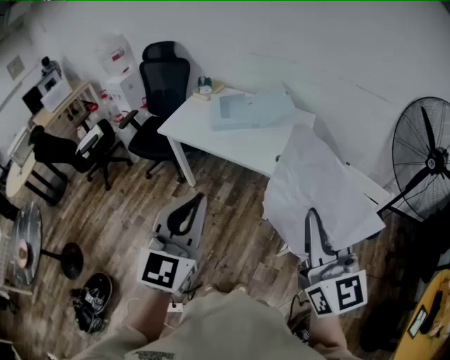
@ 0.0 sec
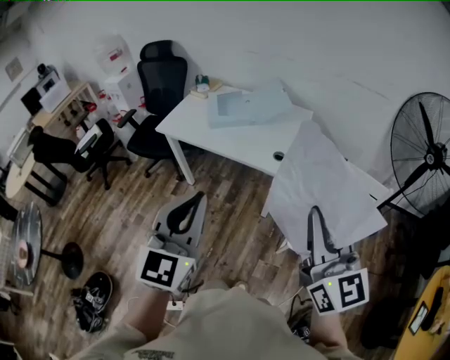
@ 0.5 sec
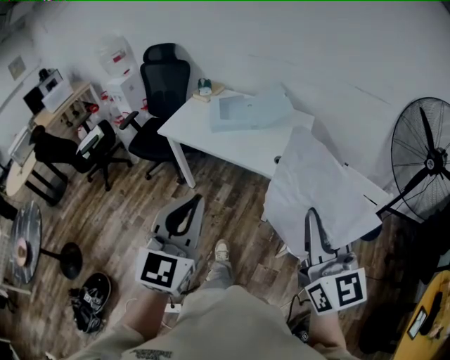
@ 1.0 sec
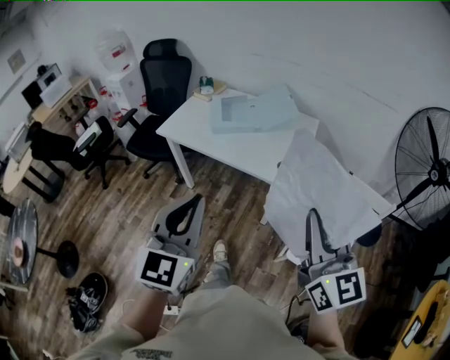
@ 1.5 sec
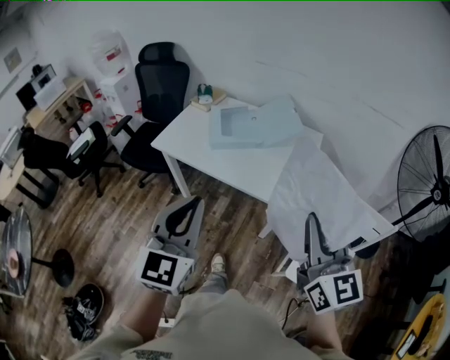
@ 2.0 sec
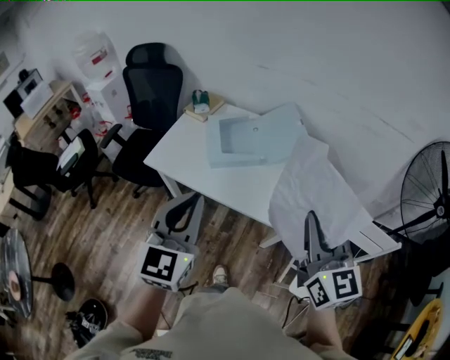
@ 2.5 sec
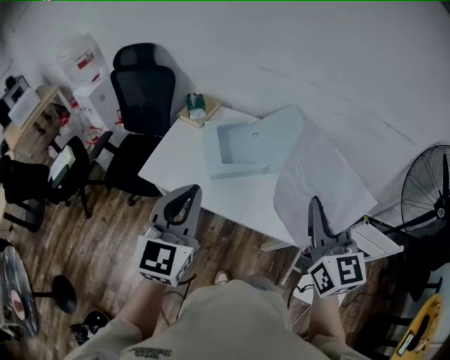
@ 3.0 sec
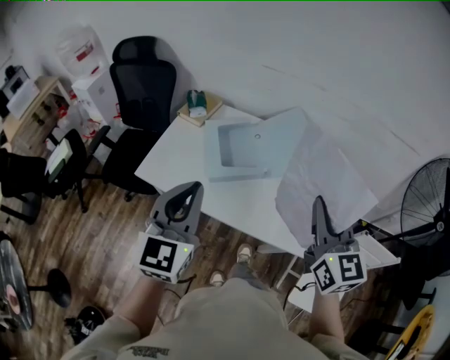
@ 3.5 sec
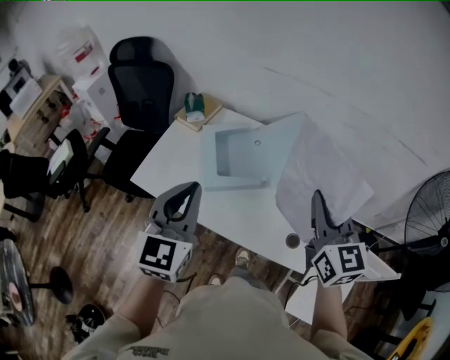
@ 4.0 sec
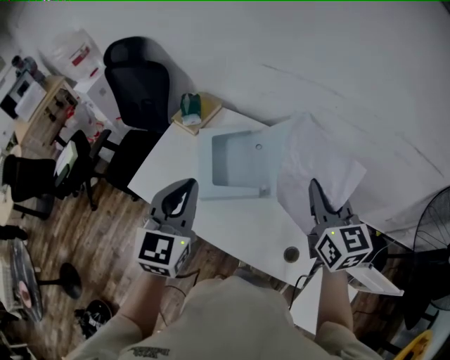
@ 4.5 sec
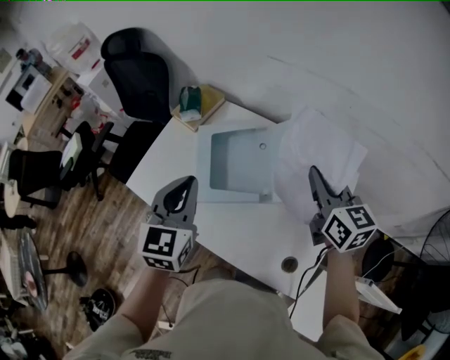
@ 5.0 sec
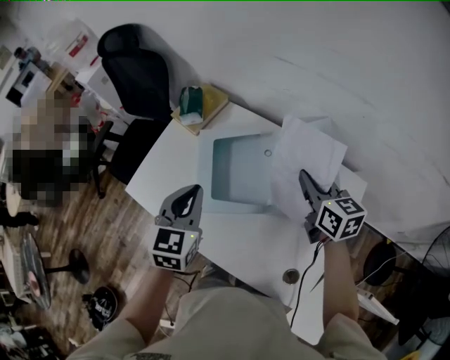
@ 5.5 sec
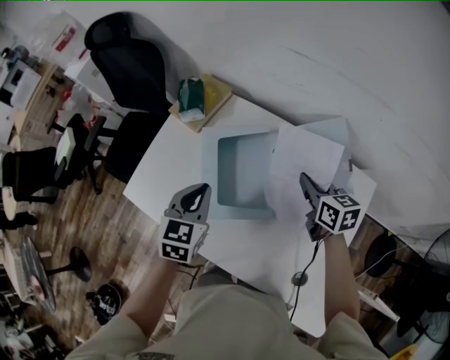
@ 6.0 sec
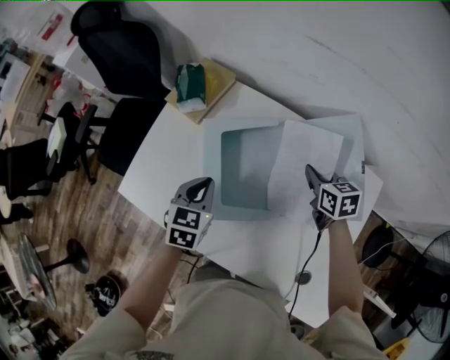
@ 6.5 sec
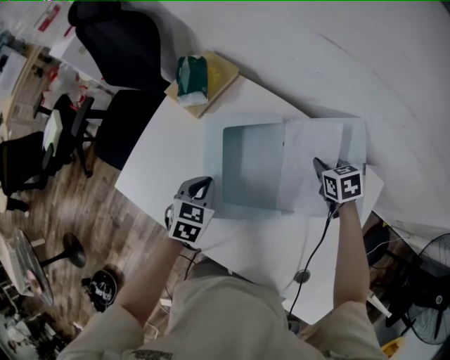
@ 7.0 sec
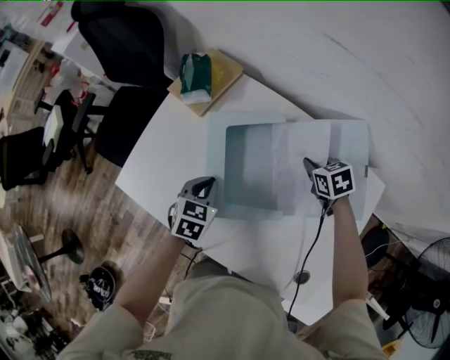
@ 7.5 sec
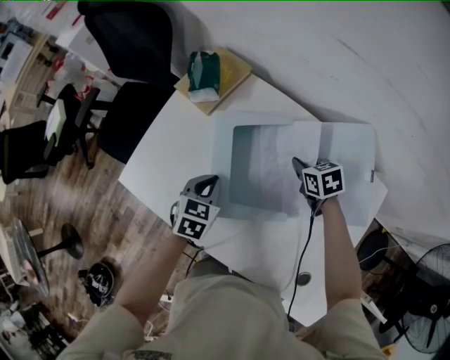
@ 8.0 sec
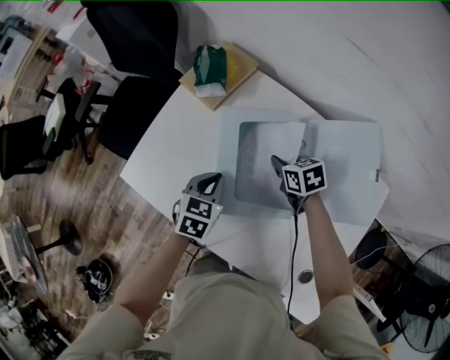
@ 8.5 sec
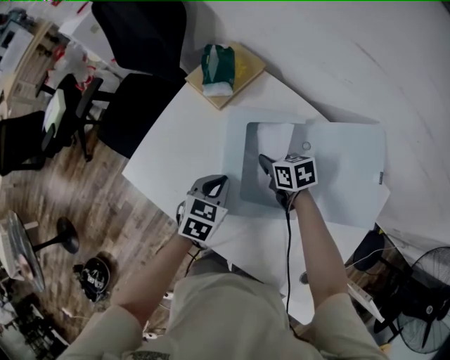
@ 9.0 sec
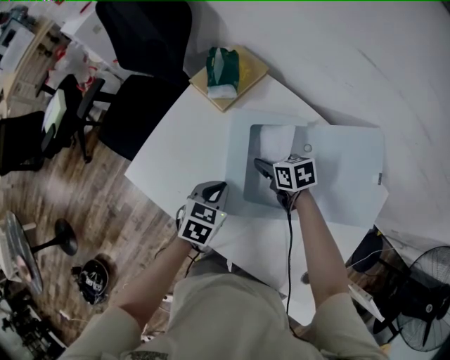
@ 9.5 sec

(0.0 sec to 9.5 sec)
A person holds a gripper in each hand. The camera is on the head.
0.0 sec - 2.0 sec: The two grippers go roughly 15 cm forward.
2.0 sec - 4.0 sec: The two grippers go approximately 40 cm forward.
4.0 sec - 5.5 sec: The two grippers go approximately 30 cm forward and downward. The left gripper rotates some 20 degrees. Meanwhile the right gripper rotates roughly 30 degrees.
5.5 sec - 7.5 sec: The right gripper shifts some 25 cm downward and forward, and tilts its fingers approximately 40 degrees downward, while the left gripper travels downward by some 20 cm, and rotates approximately 30 degrees.
7.5 sec - 9.5 sec: The right gripper goes roughly 20 cm to the left, and opens up.

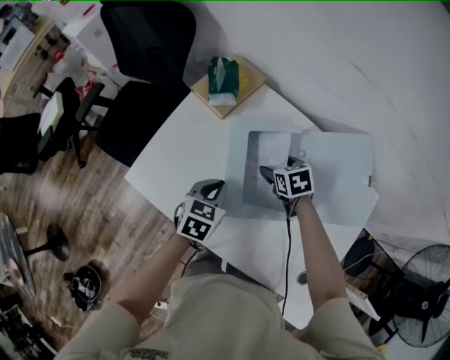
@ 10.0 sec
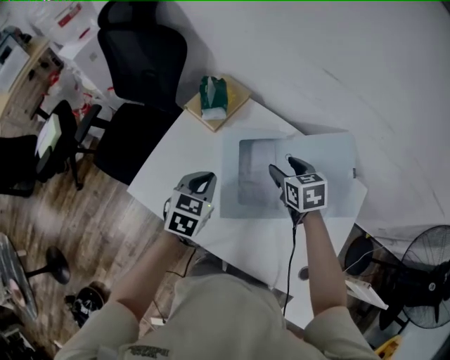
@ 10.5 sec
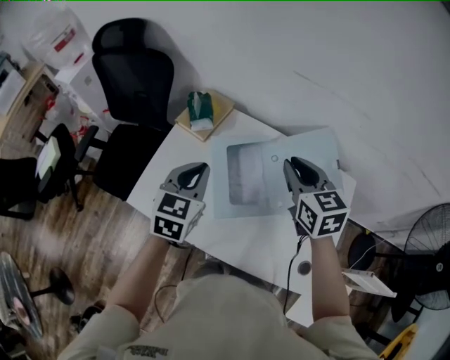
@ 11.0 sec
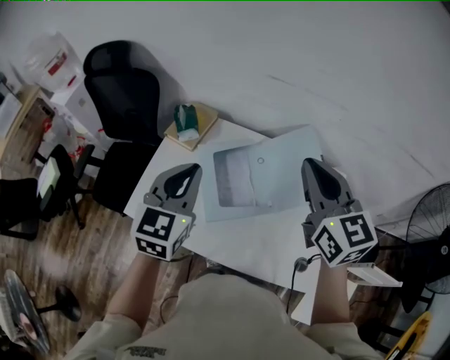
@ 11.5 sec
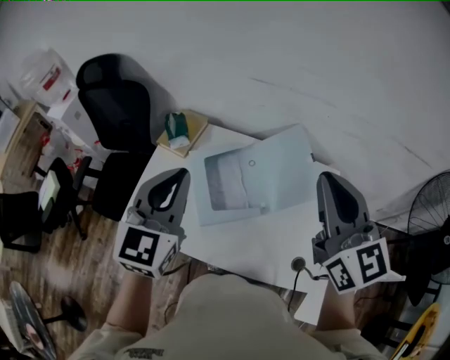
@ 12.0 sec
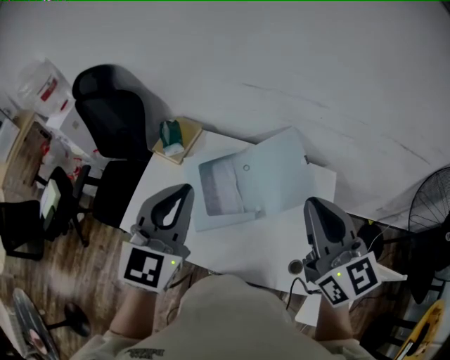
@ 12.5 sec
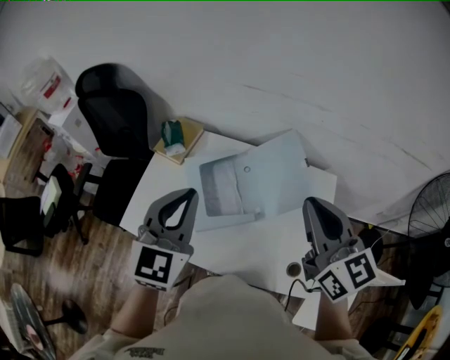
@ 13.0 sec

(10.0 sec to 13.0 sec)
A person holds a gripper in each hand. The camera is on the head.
10.0 sec - 11.5 sec: Both grippers travel together upward, roughly 35 cm. The left gripper rotates roughly 30 degrees. The right gripper tips its fingers upward by some 50 degrees, and closes its fingers.
11.5 sec - 13.0 sec: The left gripper shifts roughly 5 cm to the right; the right gripper moves to the right and backward, roughly 10 cm.

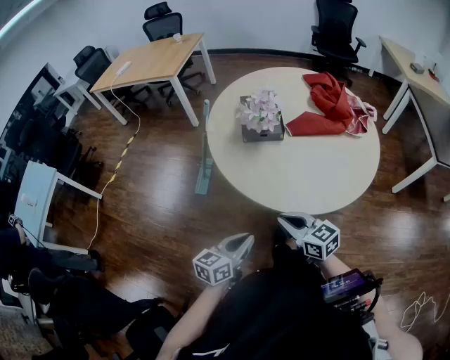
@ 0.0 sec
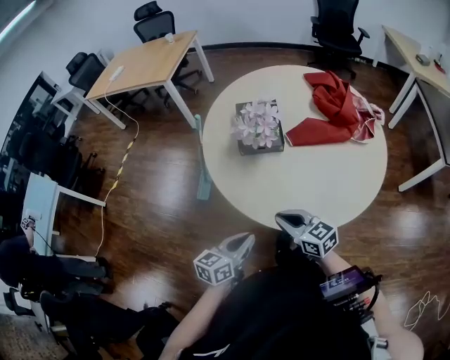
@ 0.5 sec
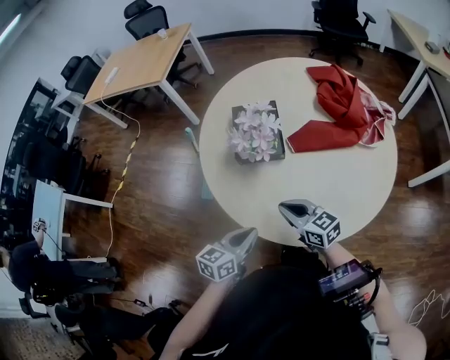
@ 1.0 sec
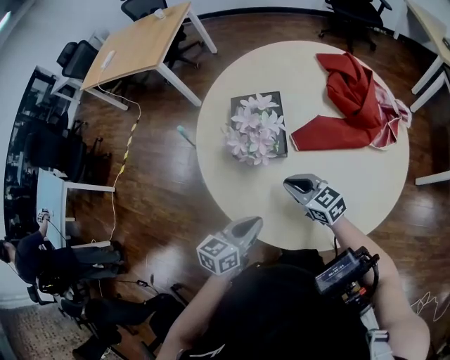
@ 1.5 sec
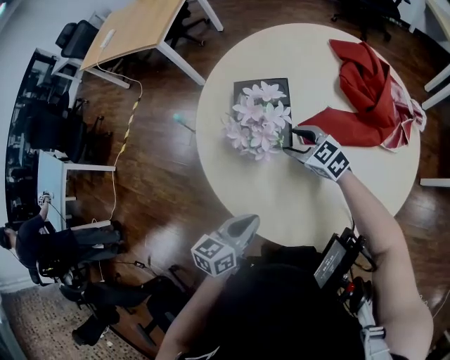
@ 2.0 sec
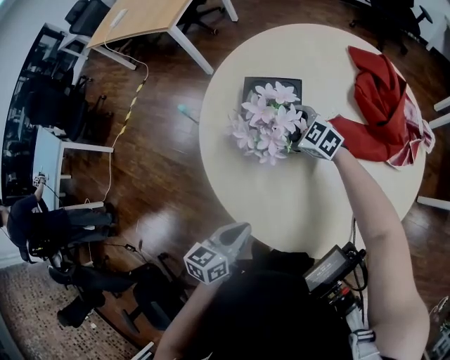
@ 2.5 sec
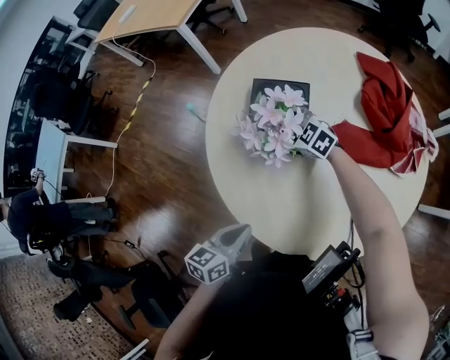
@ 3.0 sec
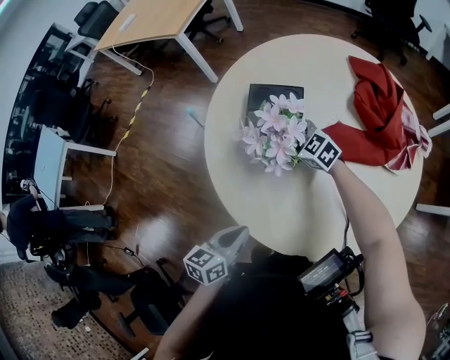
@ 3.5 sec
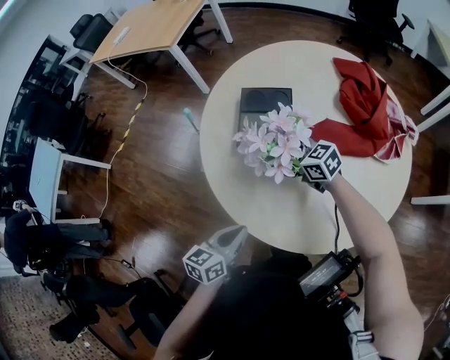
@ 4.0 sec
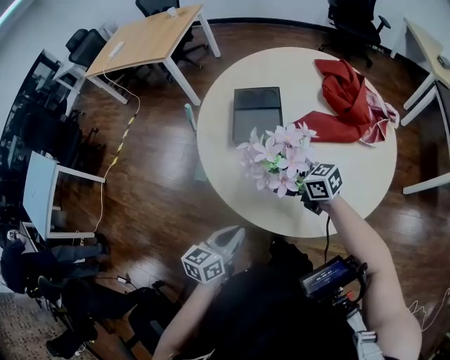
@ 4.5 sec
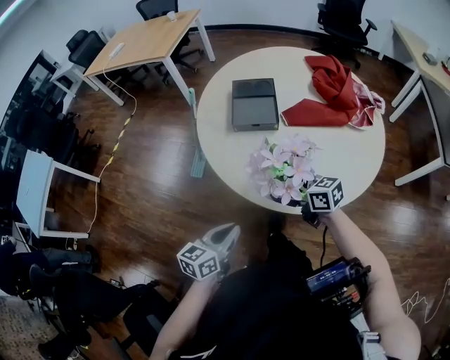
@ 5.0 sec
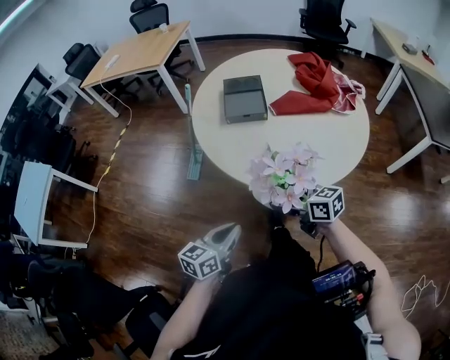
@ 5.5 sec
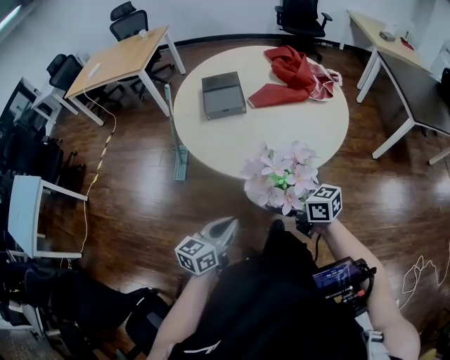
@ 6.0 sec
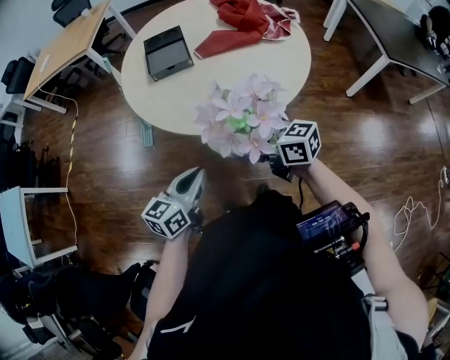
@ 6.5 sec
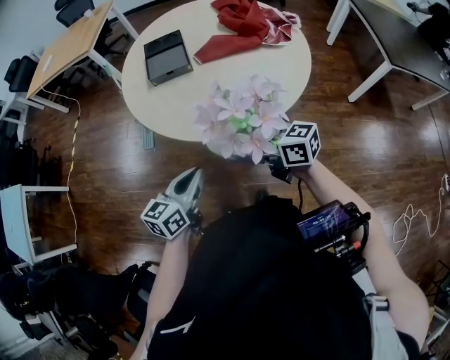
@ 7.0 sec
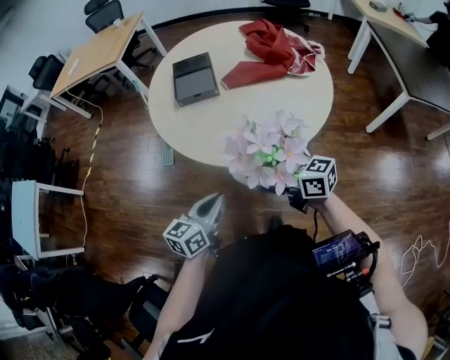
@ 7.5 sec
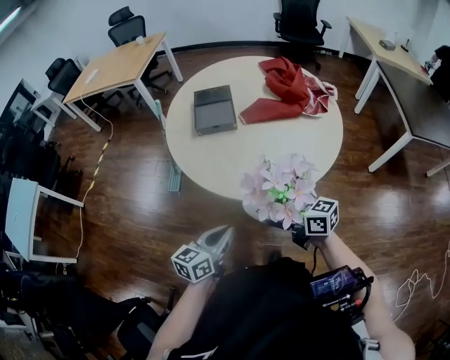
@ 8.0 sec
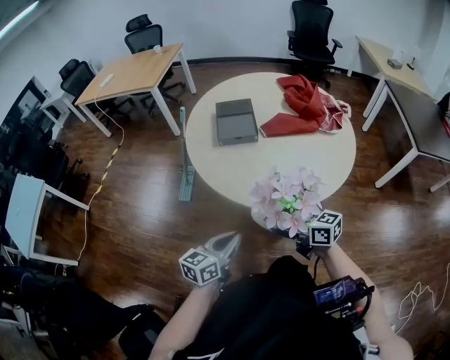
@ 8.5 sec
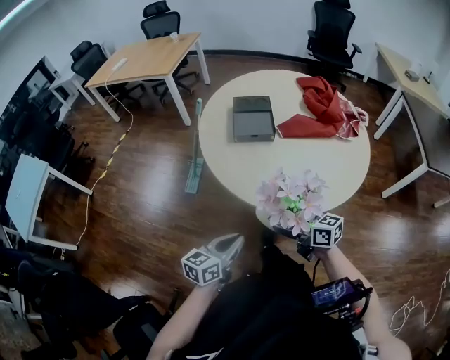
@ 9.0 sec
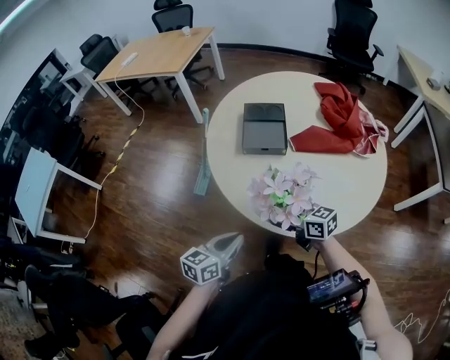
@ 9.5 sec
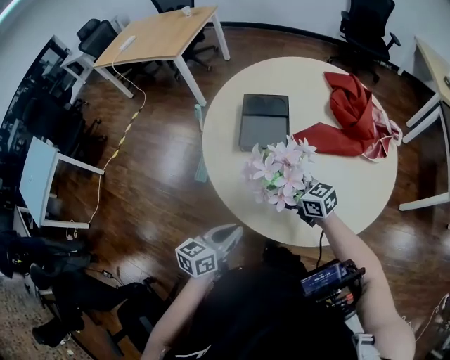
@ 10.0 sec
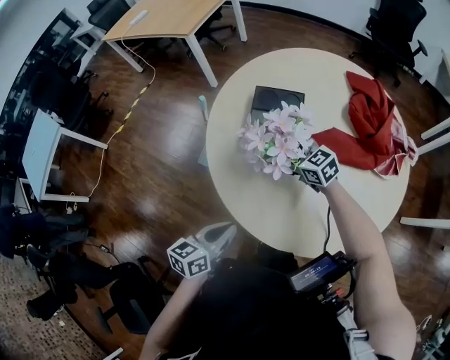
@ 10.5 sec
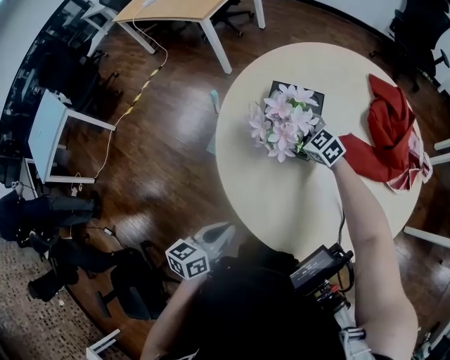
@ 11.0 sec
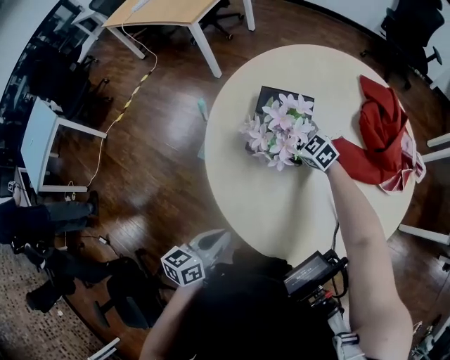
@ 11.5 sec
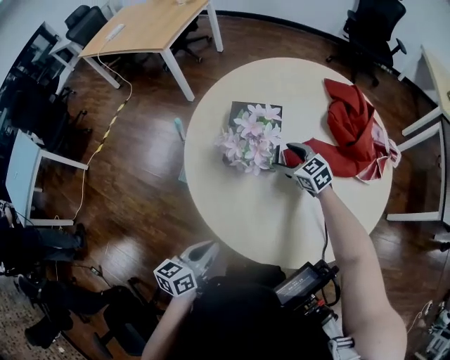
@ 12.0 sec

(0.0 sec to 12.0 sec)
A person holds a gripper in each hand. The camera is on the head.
0.0 sec - 2.0 sec: The left gripper travels forward by about 25 cm; the right gripper shifts some 40 cm forward, turns by approximately 30 degrees, and opens up.
2.0 sec - 4.0 sec: The left gripper shifts by approximately 5 cm. Meanwhile the right gripper travels forward and back again, roughly 5 cm each way, and opens.
4.0 sec - 6.0 sec: The left gripper travels backward by roughly 25 cm, and turns by approximately 20 degrees; the right gripper is displaced backward by roughly 40 cm, and swivels some 30 degrees.
6.0 sec - 8.0 sec: The right gripper changes place by about 5 cm. Meanwhile the left gripper shifts by some 5 cm.
8.0 sec - 10.0 sec: Both grippers travel together forward, roughly 25 cm.
10.0 sec - 12.0 sec: The right gripper travels forward and to the right by roughly 20 cm, and rotates about 20 degrees. Meanwhile the left gripper shifts by roughly 5 cm.

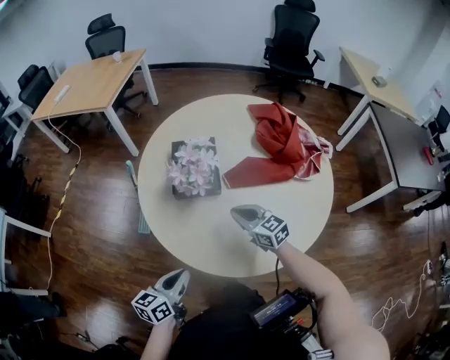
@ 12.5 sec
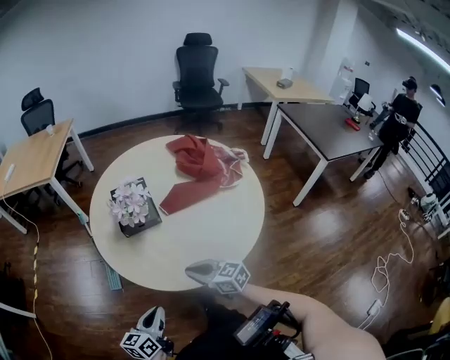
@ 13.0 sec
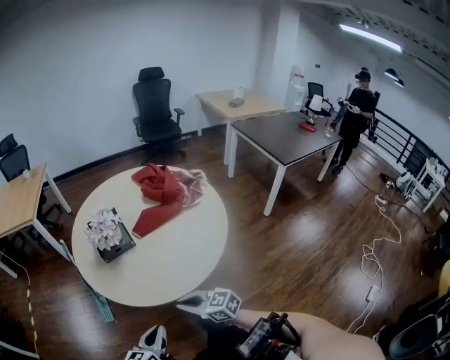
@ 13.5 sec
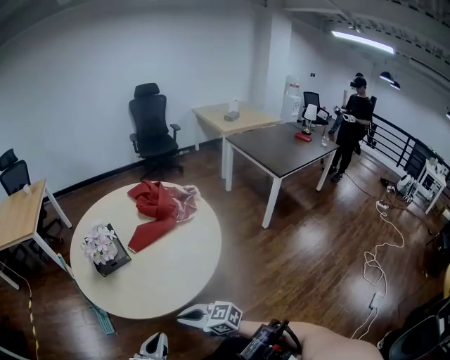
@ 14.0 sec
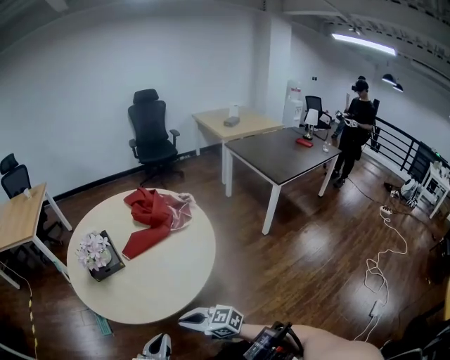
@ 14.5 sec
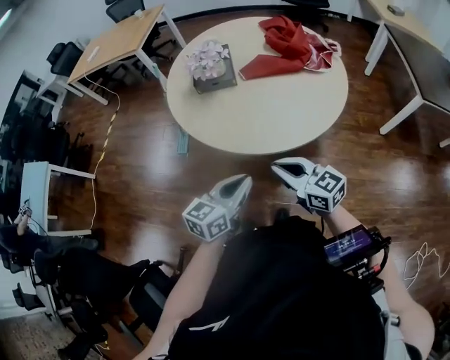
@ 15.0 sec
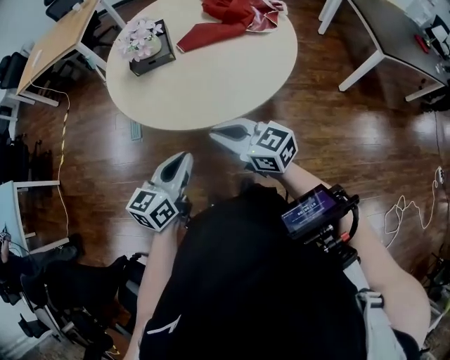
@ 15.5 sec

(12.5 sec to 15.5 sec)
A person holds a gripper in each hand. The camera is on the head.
12.5 sec - 14.0 sec: The left gripper shifts about 20 cm backward and to the right, and rotates some 20 degrees. Meanwhile the right gripper is displaced backward by some 35 cm.
14.0 sec - 15.5 sec: The left gripper shifts some 5 cm upward, while the right gripper goes approximately 5 cm to the right.
